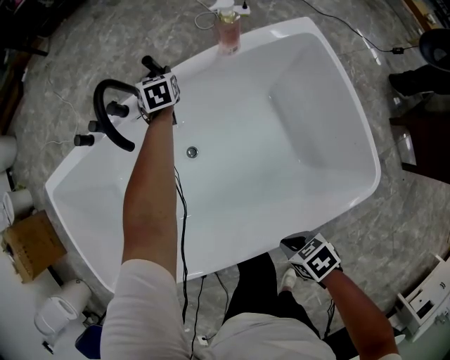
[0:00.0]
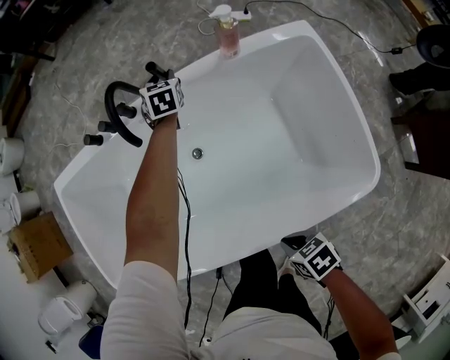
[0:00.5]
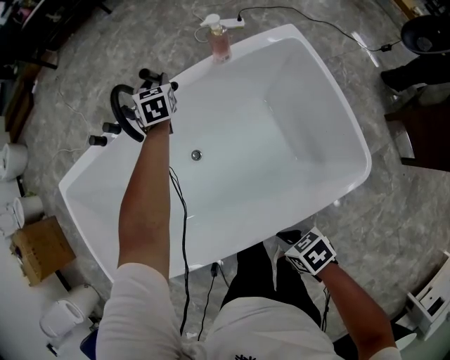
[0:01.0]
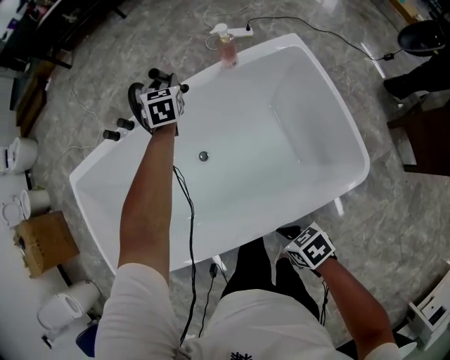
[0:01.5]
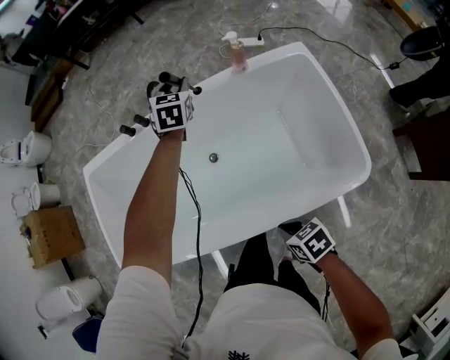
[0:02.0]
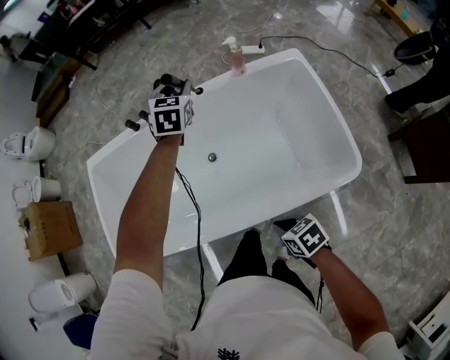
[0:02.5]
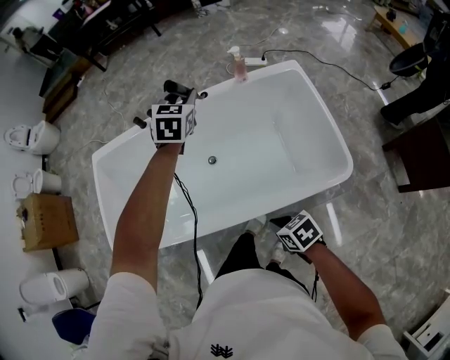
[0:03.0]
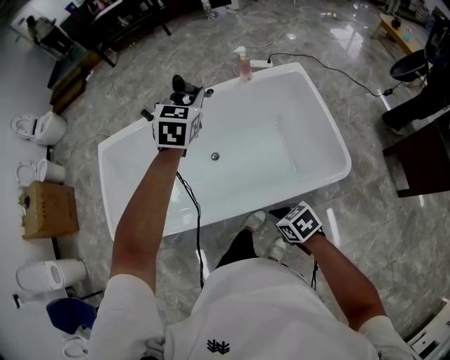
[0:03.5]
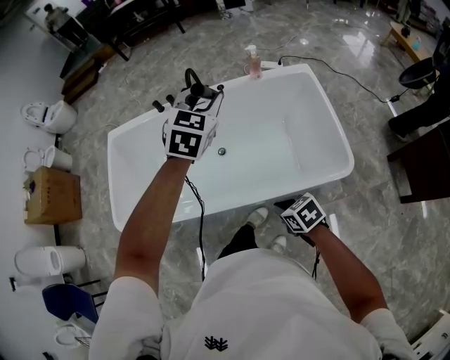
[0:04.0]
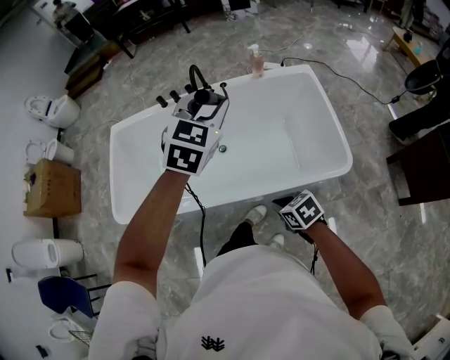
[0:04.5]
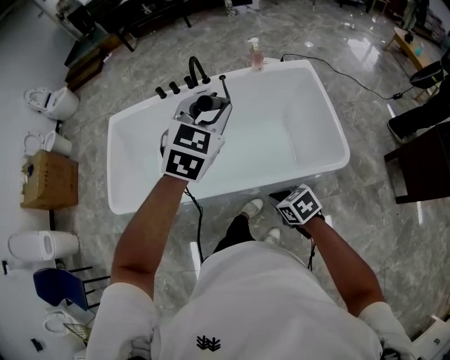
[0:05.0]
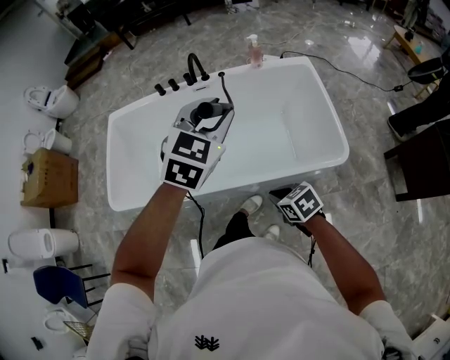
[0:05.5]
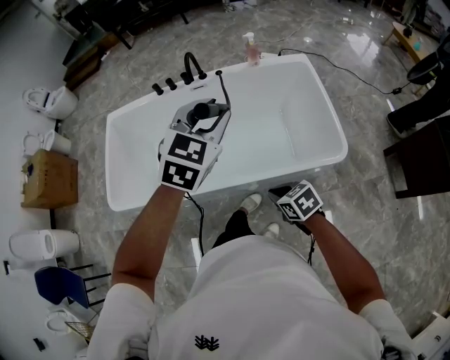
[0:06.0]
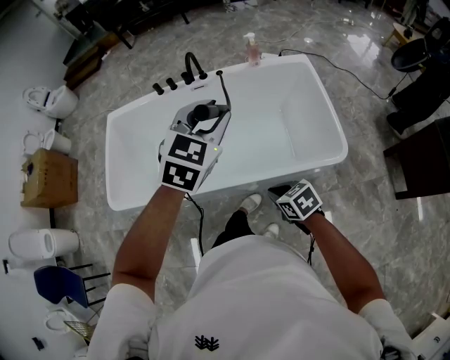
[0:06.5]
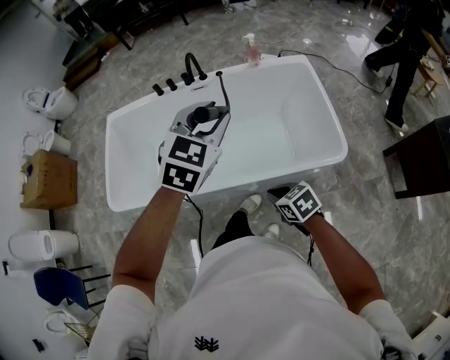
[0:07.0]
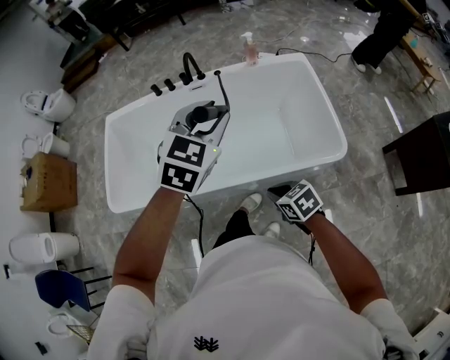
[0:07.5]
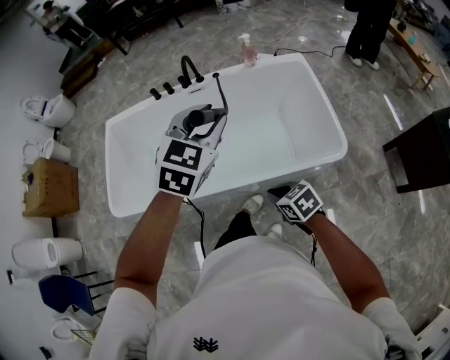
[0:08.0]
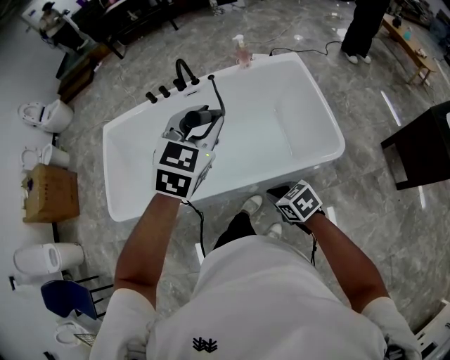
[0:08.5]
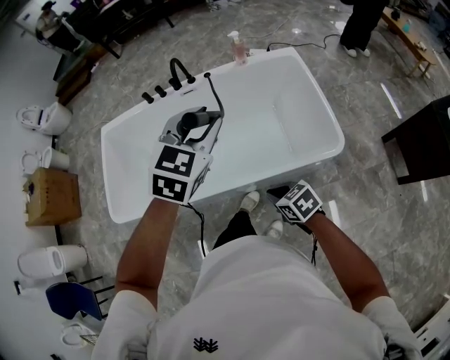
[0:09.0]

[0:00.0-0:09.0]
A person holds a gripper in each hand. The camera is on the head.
0:00.0 to 0:02.0: The left gripper goes roughly 30 cm upward and backward. The right gripper shifts approximately 10 cm upward.
0:02.0 to 0:04.5: The right gripper shifts about 15 cm backward and upward. Meanwhile the left gripper goes approximately 50 cm backward and upward.
0:04.5 to 0:07.0: The left gripper moves backward, roughly 10 cm.
0:07.0 to 0:09.0: The grippers make only small movements.

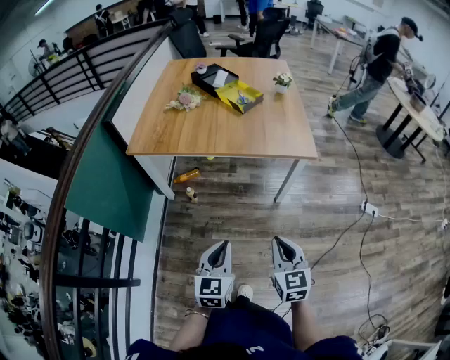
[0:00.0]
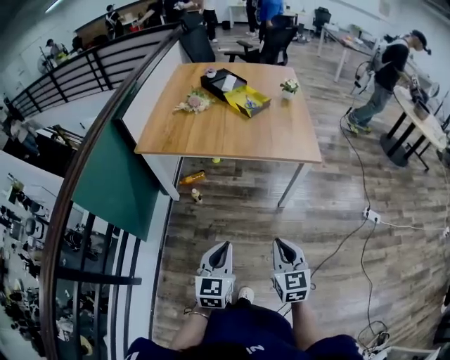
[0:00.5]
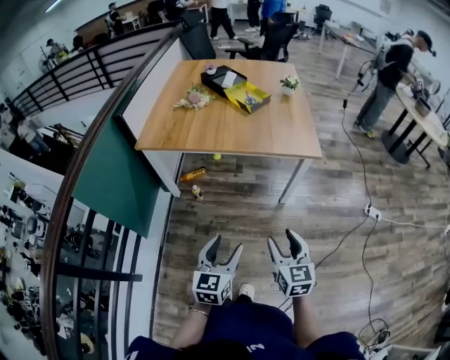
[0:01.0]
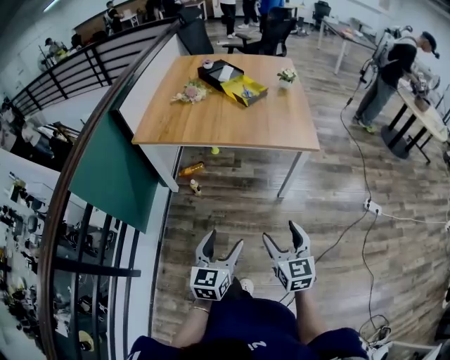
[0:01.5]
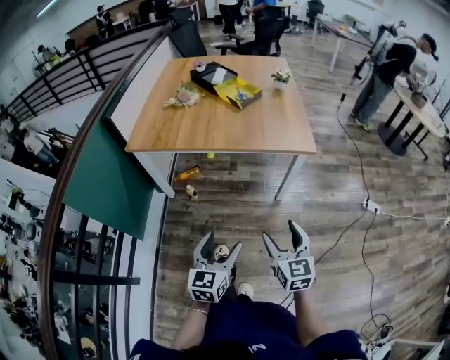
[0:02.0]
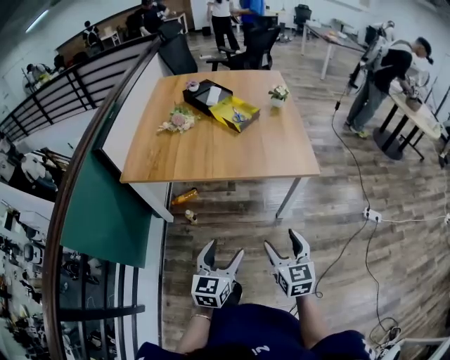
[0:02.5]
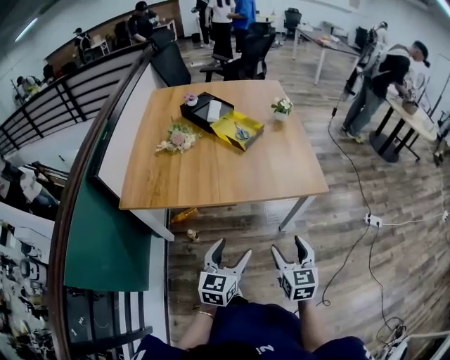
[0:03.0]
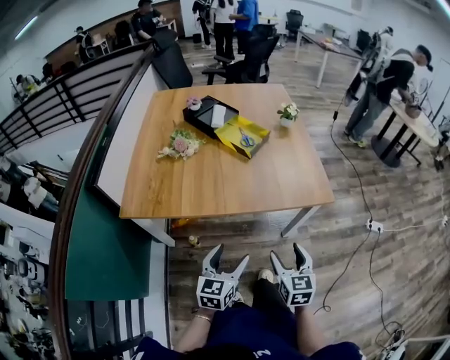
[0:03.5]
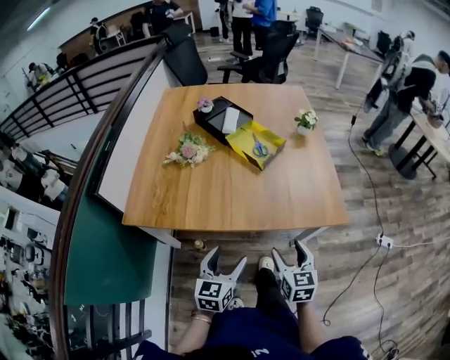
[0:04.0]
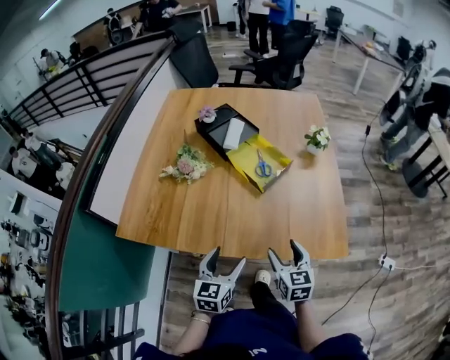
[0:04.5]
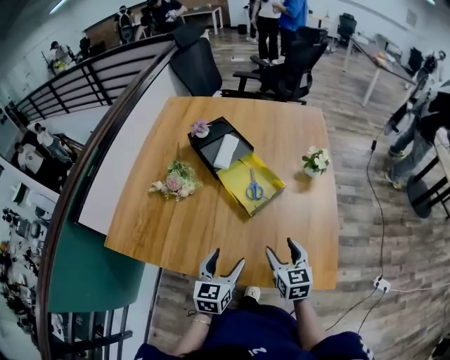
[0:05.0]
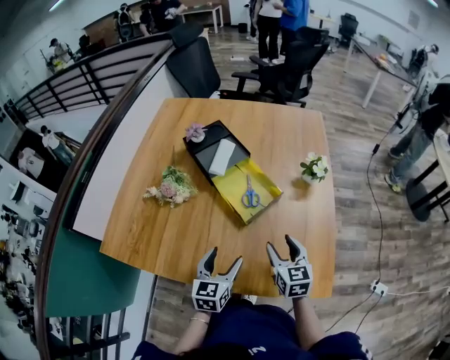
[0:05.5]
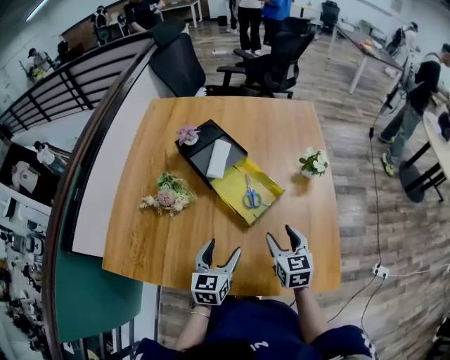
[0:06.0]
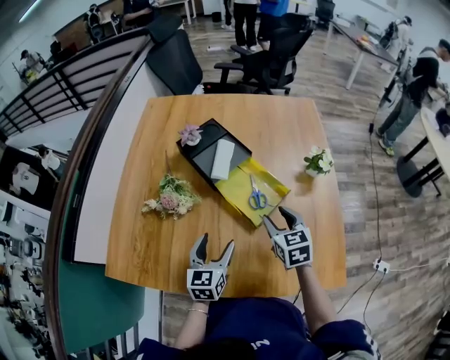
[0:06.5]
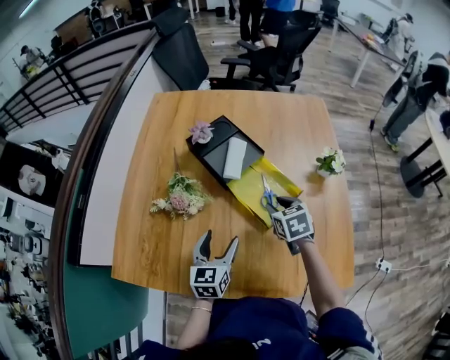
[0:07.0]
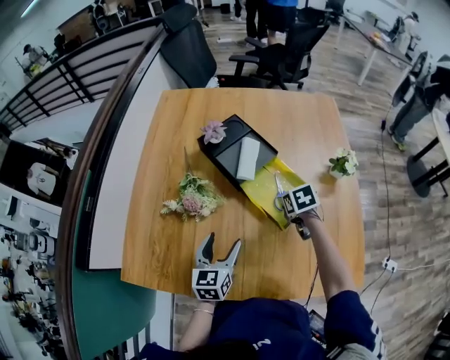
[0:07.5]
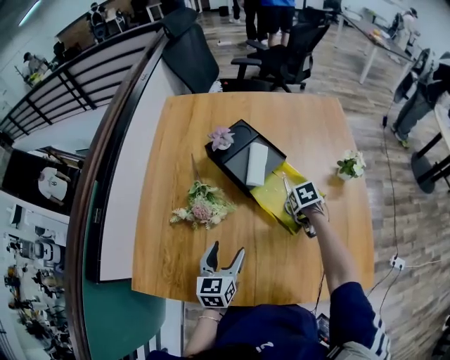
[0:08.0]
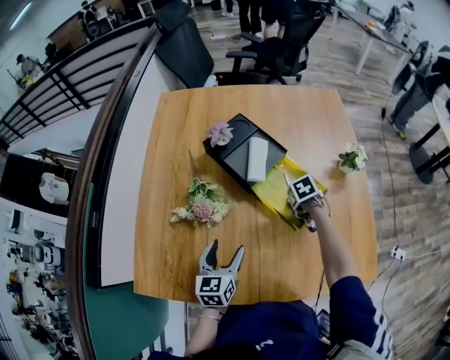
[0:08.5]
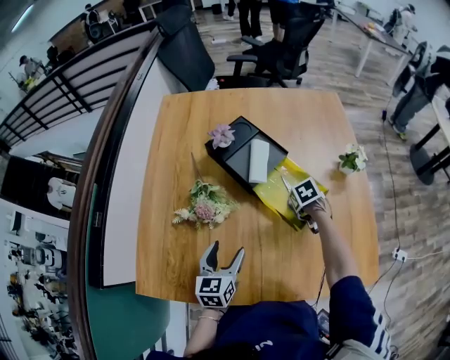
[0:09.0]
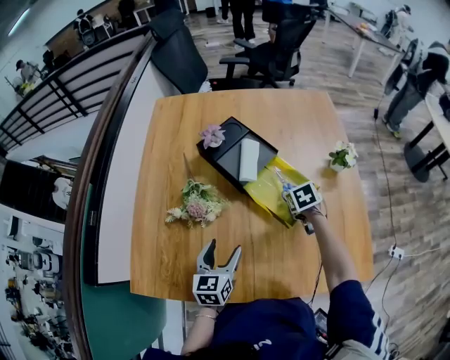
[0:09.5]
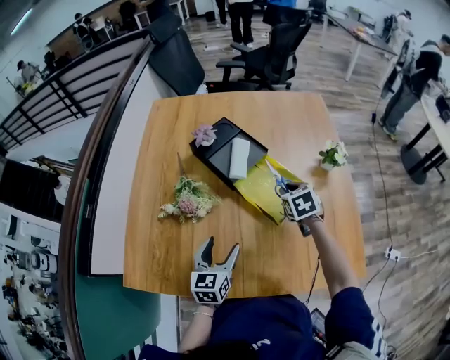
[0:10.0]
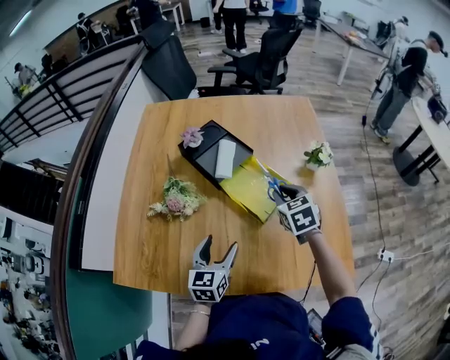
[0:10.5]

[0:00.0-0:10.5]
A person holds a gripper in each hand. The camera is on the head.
0:00.0 to 0:02.0: The left gripper opens up. The right gripper opens up.
0:02.0 to 0:04.0: Both grippers travel together forward, approximately 30 cm.
0:04.0 to 0:06.5: Both grippers move forward, roughly 35 cm.
0:06.5 to 0:08.5: The left gripper changes place by about 10 cm. Meanwhile the right gripper goes approximately 15 cm downward, and tips its fingers downward by approximately 50 degrees.
0:08.5 to 0:10.5: The left gripper ends up some 10 cm from where it was; the right gripper is displaced upward by about 15 cm, and points its fingers roughly 40 degrees further upward.

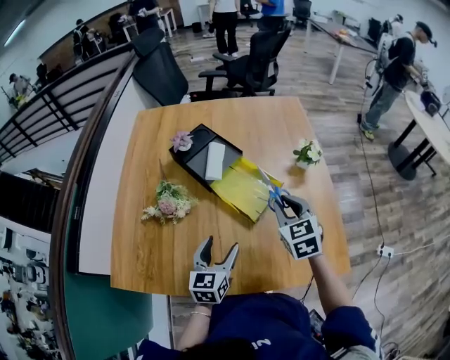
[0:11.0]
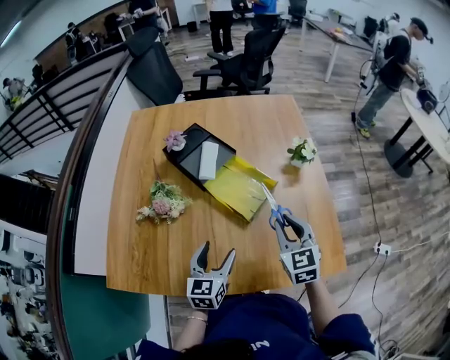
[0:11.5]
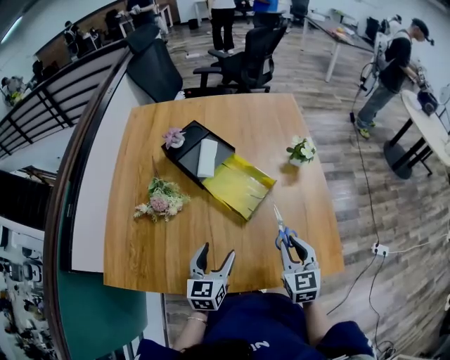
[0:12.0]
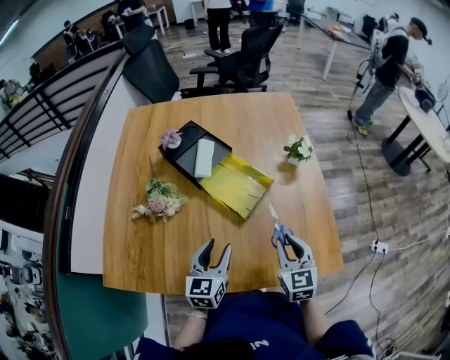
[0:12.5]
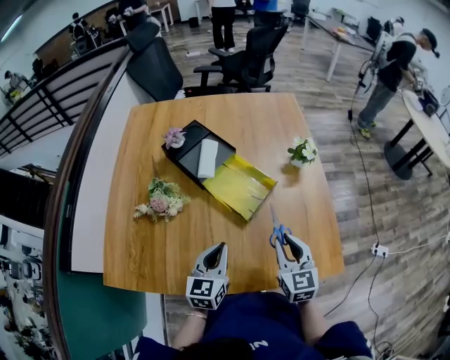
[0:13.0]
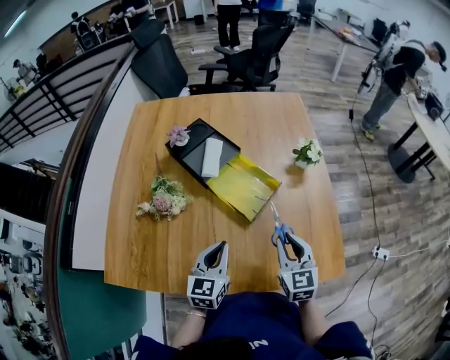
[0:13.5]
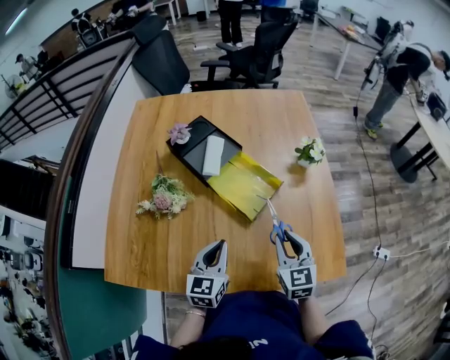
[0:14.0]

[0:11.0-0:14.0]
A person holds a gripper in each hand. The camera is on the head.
0:11.0 to 0:12.5: The right gripper heads backward, covering some 10 cm.
0:12.5 to 0:14.0: The left gripper closes up.

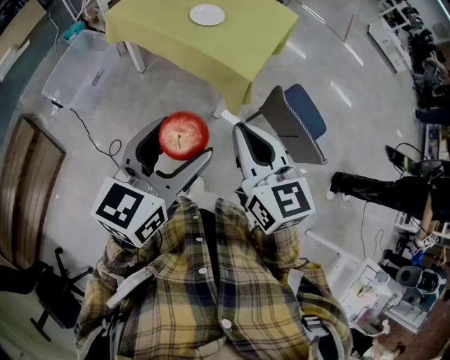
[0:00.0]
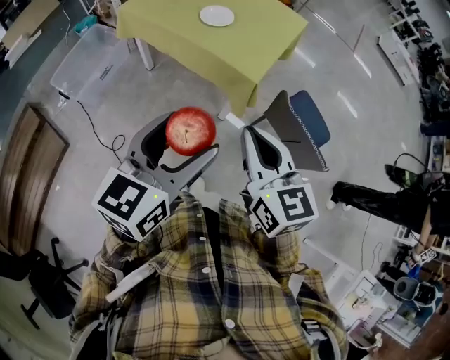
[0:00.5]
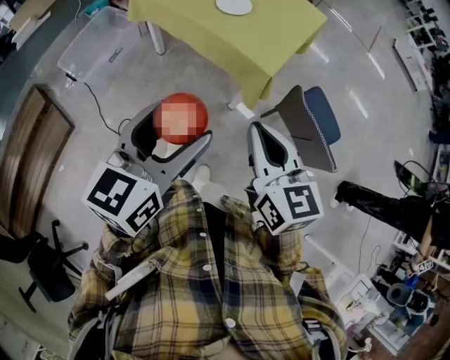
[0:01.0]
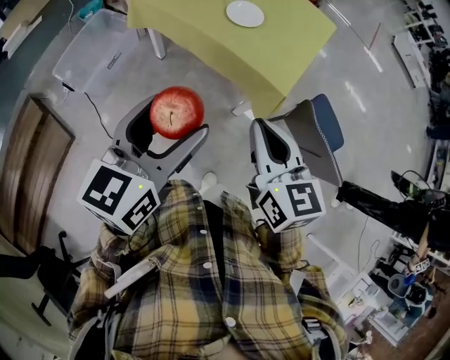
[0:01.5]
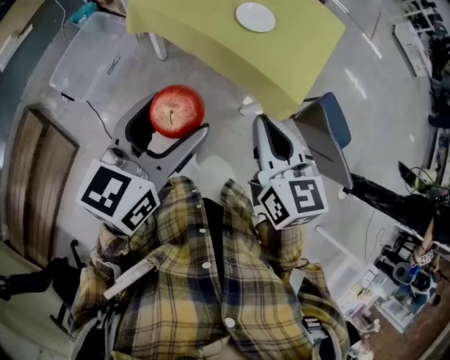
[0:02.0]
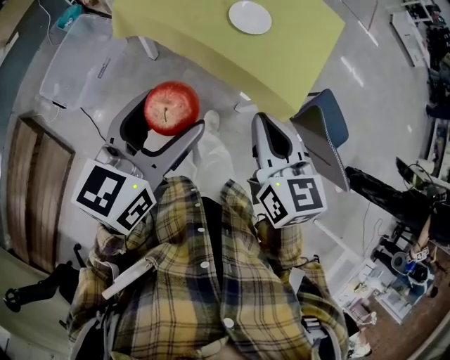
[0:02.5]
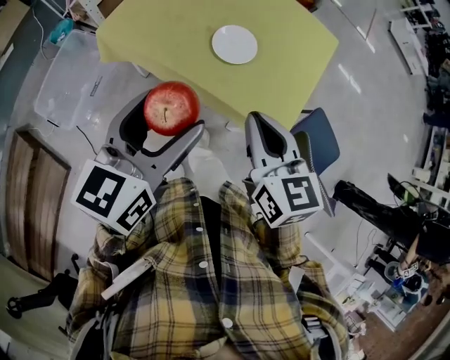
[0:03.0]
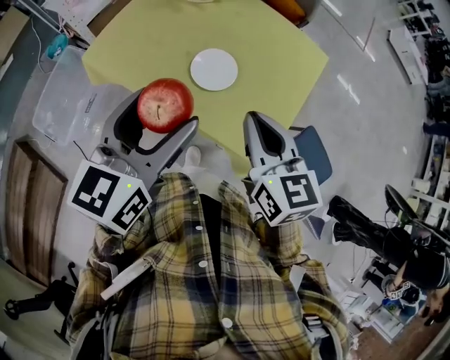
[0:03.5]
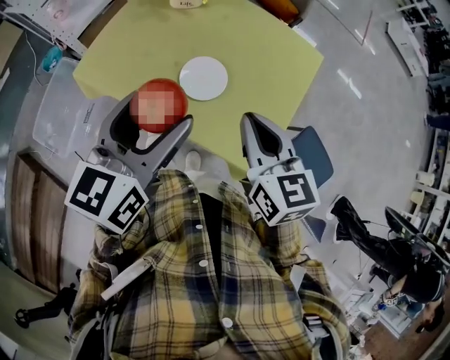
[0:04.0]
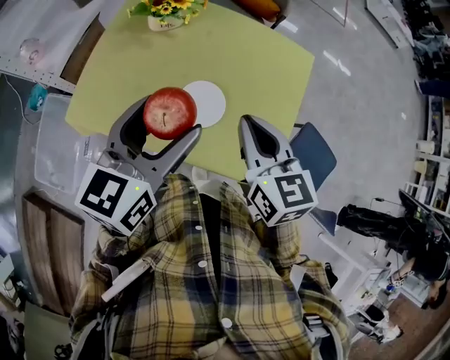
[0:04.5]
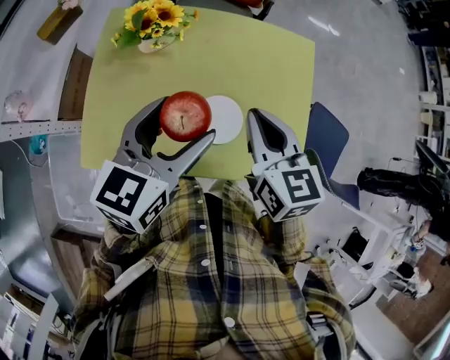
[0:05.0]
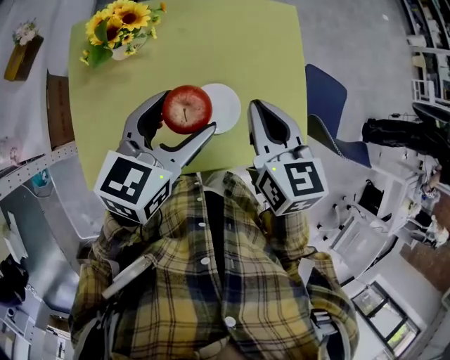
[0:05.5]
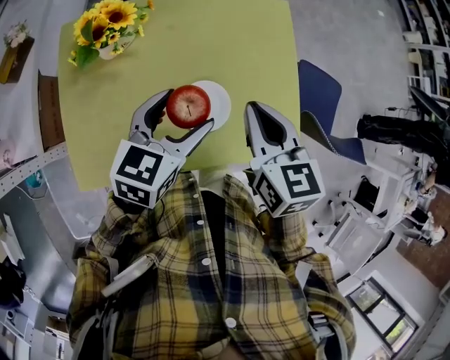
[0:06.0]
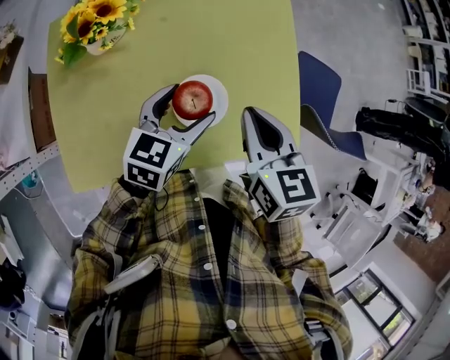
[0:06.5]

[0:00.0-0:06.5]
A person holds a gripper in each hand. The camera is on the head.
0:00.0 to 0:02.0: The left gripper moves to the left and forward, roughly 25 cm; the right gripper shifts about 20 cm forward and to the left.
0:02.0 to 0:04.5: The two grippers go some 40 cm forward.
0:04.5 to 0:06.5: The right gripper travels downward by about 5 cm, and swivels roughly 30 degrees, while the left gripper travels downward by roughly 15 cm, and swivels about 40 degrees.
